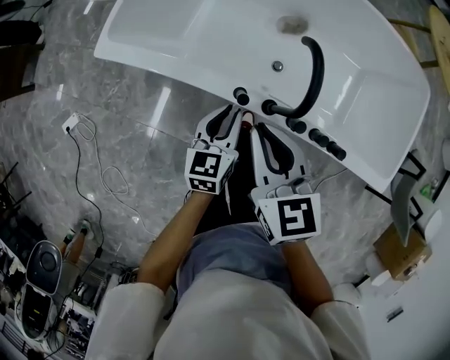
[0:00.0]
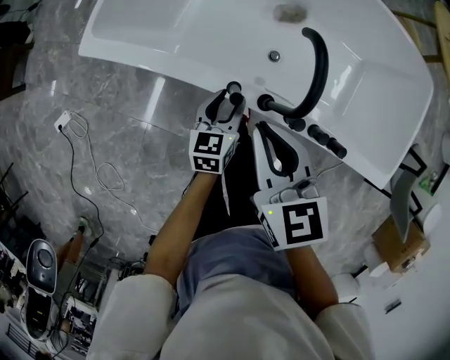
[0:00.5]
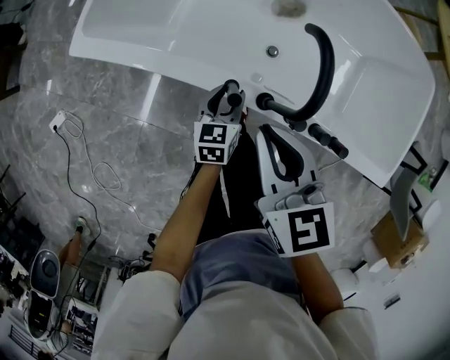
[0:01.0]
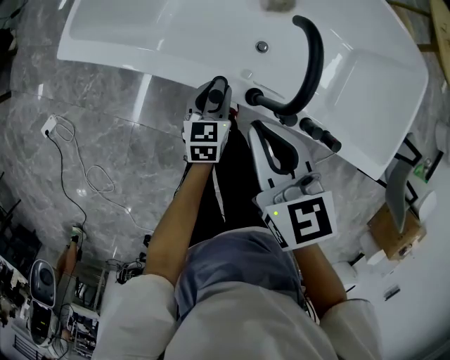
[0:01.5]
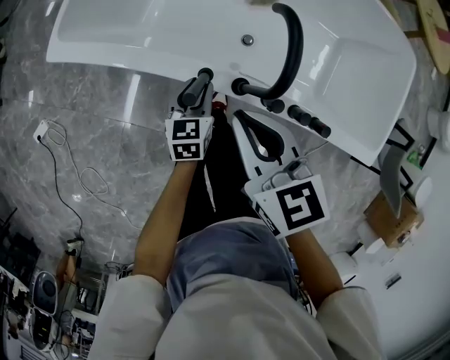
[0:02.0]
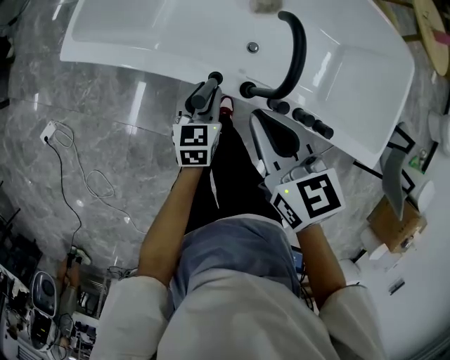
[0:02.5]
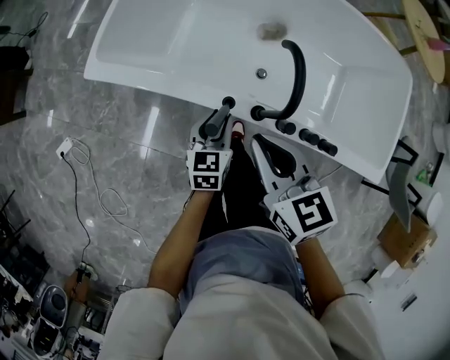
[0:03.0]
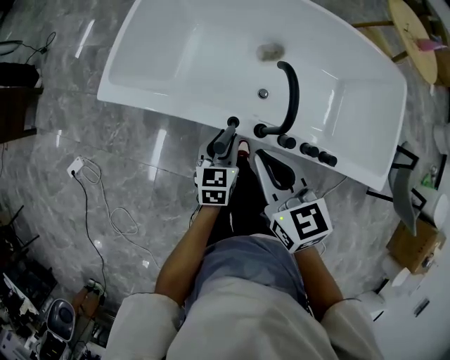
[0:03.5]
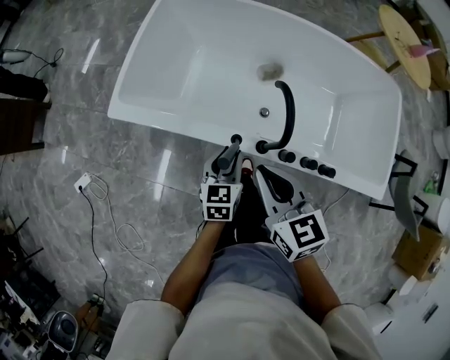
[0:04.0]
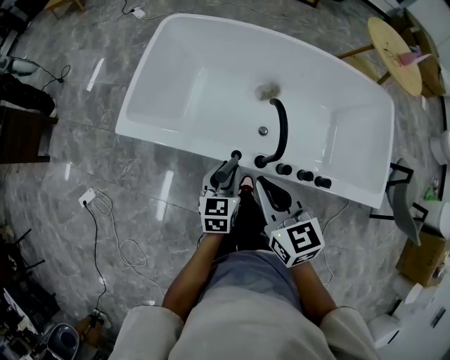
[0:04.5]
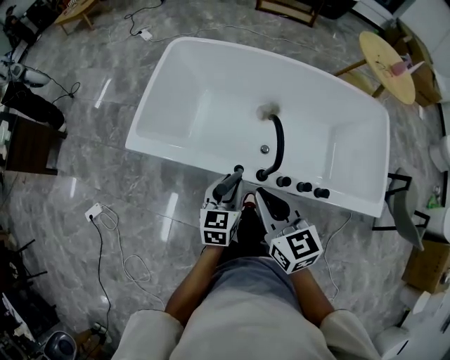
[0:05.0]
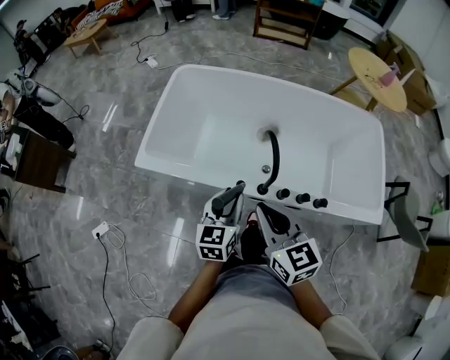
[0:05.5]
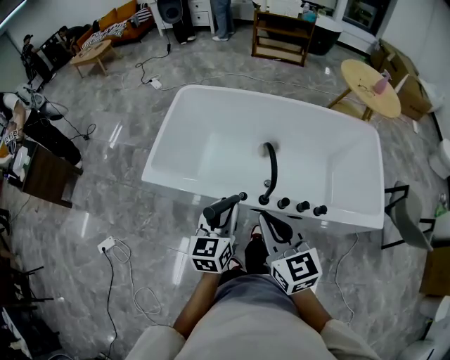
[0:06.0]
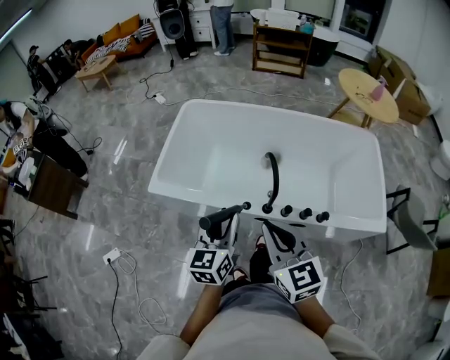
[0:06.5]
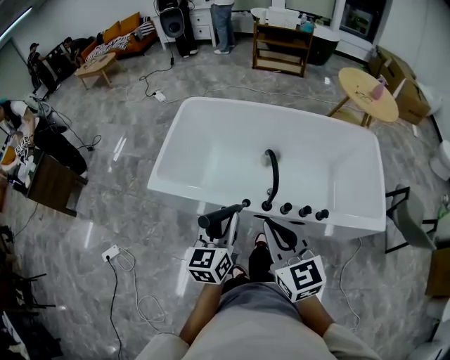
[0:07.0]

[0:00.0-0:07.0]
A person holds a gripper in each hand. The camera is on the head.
0:00.0 to 0:02.0: The left gripper goes roughly 10 cm downward.
0:02.0 to 0:03.5: The right gripper is displaced upward by some 5 cm. Meanwhile the left gripper travels upward by approximately 10 cm.
0:03.5 to 0:05.0: The left gripper moves upward, about 10 cm. Meanwhile the right gripper is displaced upward by about 5 cm.
0:05.0 to 0:07.0: Both grippers move upward and backward, about 15 cm.

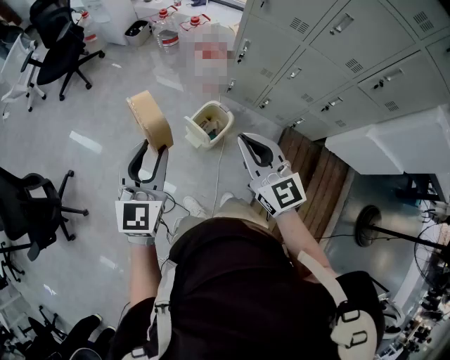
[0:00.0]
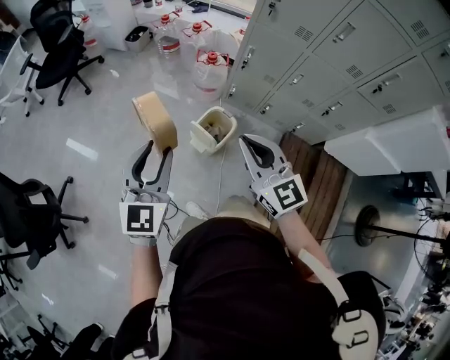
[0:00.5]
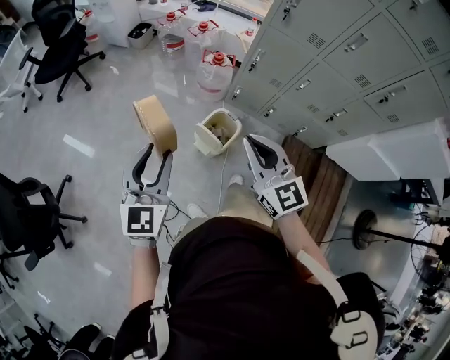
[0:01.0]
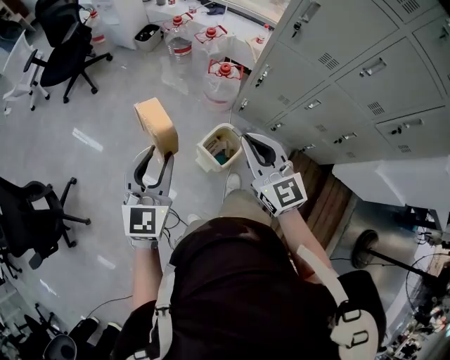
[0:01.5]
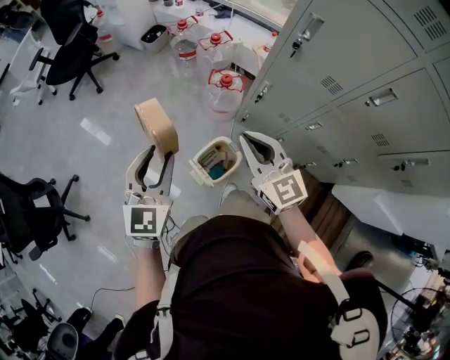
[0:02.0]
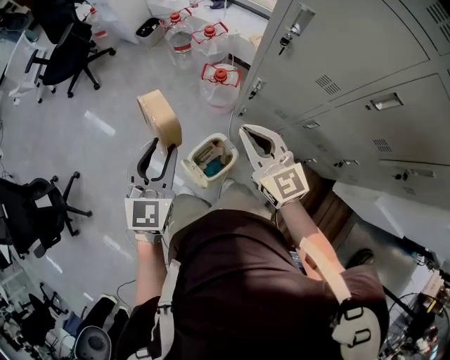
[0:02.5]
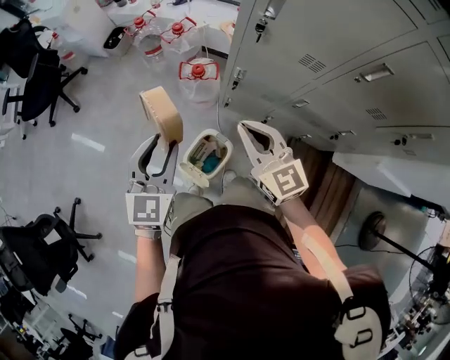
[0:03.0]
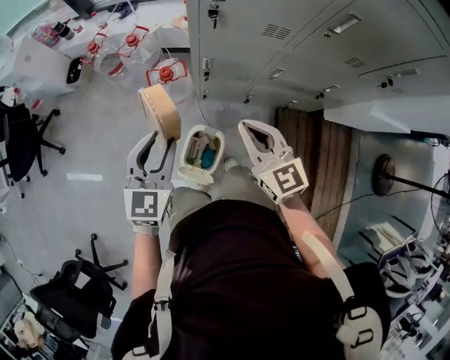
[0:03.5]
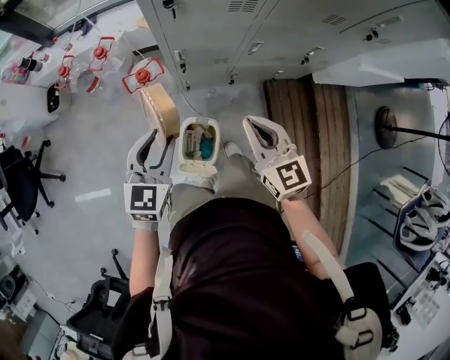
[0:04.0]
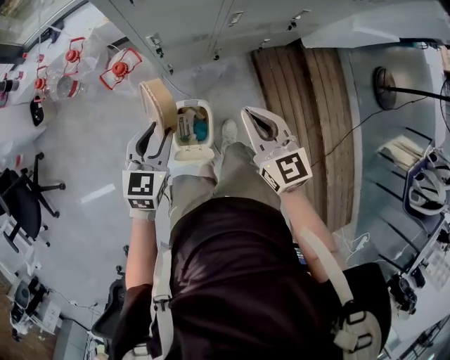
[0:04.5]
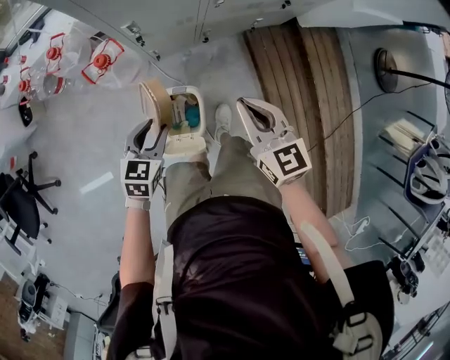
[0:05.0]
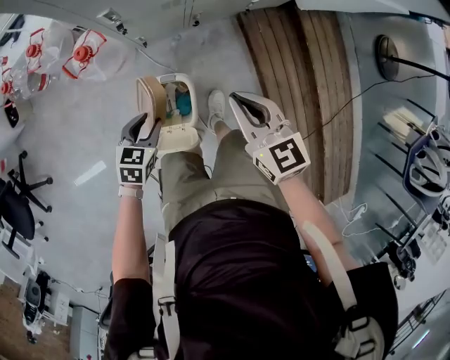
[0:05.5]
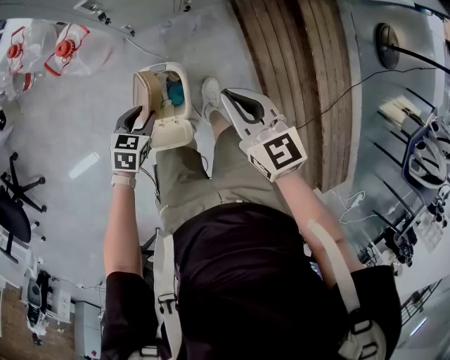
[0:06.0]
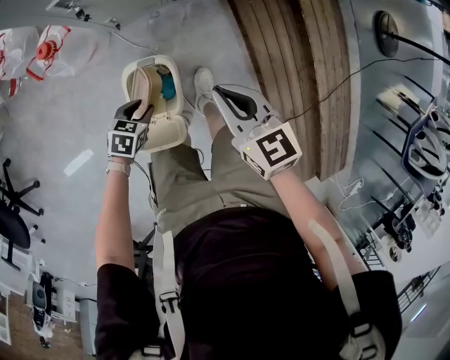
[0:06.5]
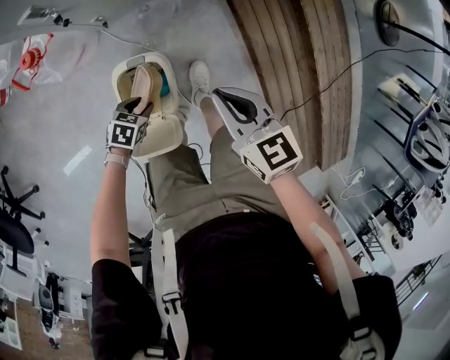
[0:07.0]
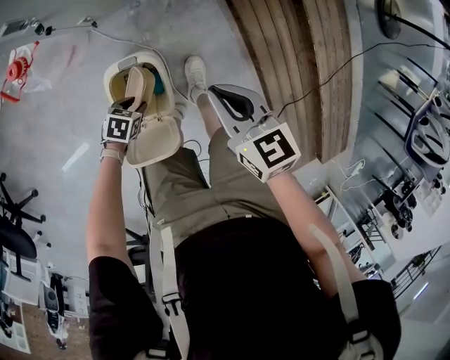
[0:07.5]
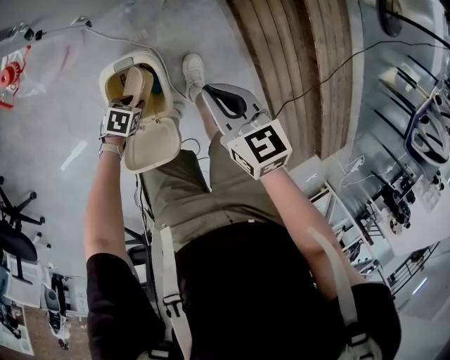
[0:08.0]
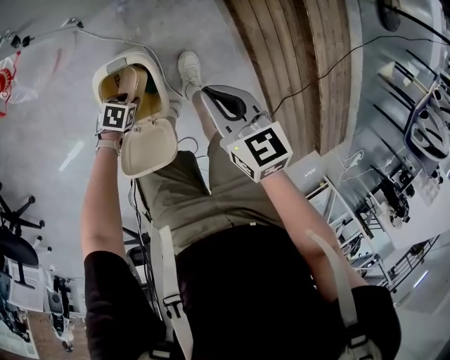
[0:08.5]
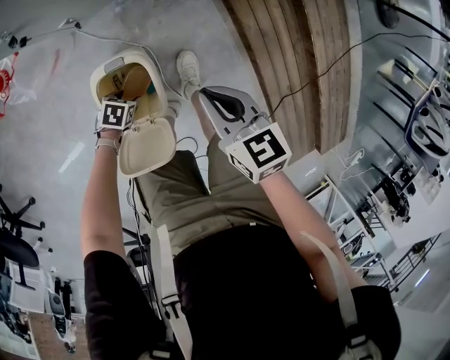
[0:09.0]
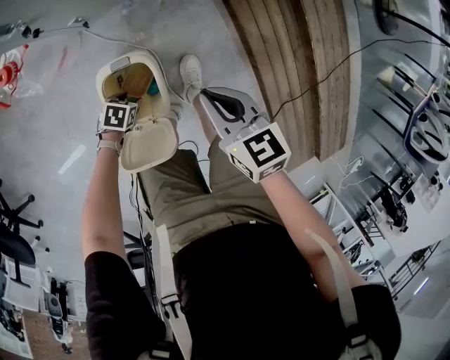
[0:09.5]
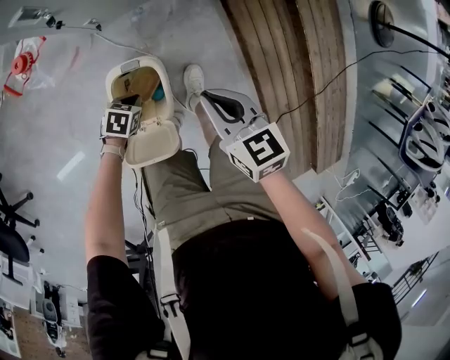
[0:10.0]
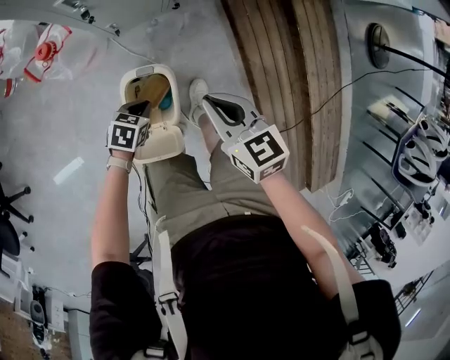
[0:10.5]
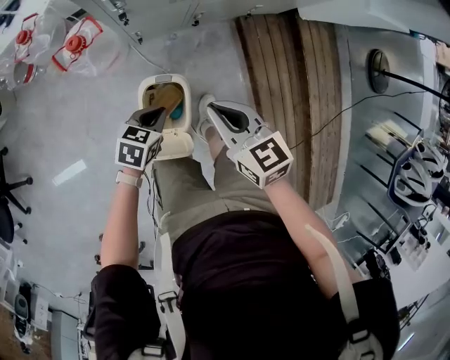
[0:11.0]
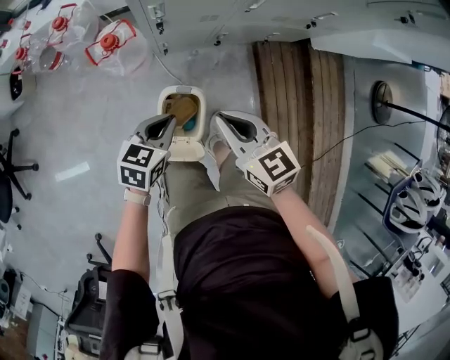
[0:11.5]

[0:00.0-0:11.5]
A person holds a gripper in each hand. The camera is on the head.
0:00.0 to 0:02.0: Both grippers move forward, about 25 cm.
0:02.0 to 0:04.0: The left gripper changes place by some 25 cm, and changes its angle by about 50 degrees. The right gripper ends up roughly 15 cm from where it was, and rotates approximately 50 degrees.
0:04.0 to 0:06.0: The left gripper heads downward, covering roughly 35 cm, and angles its fingers downward, by roughly 30 degrees, while the right gripper shifts about 20 cm downward, and swivels about 20 degrees.
0:06.0 to 0:07.5: The right gripper heads downward, covering some 10 cm, while the left gripper goes roughly 20 cm downward, and swivels some 30 degrees.
0:09.5 to 0:11.5: The right gripper is displaced upward by approximately 20 cm, and rotates some 30 degrees, while the left gripper travels upward by approximately 40 cm, changes its angle by about 50 degrees, and closes up.

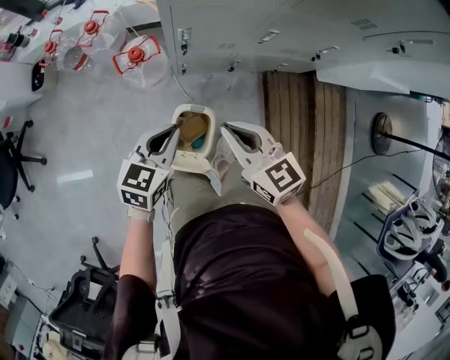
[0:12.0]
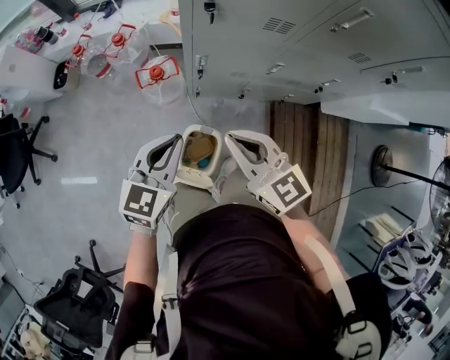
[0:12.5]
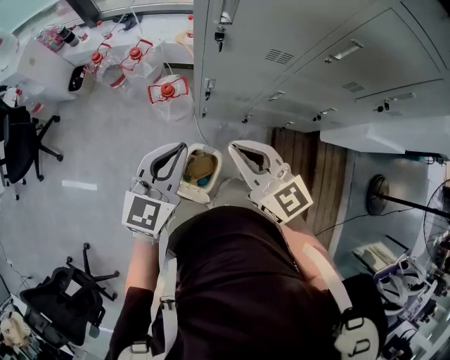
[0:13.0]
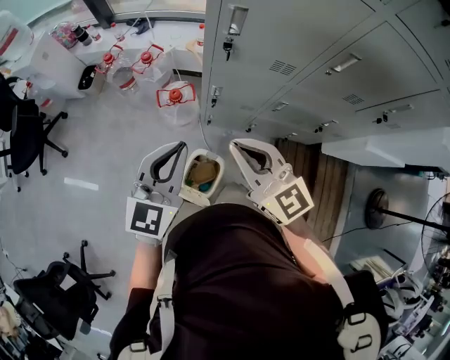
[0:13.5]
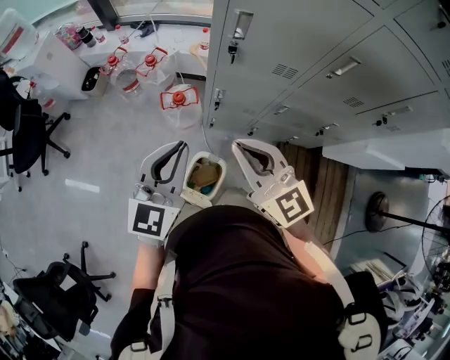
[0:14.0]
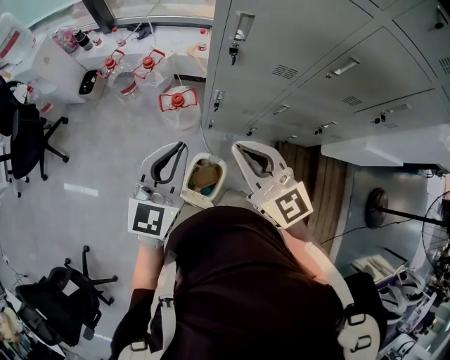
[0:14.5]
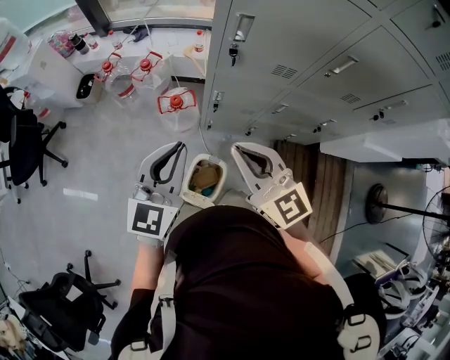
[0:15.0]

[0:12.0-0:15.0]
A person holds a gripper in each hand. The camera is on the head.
0:12.0 to 0:13.5: The two grippers go approximately 20 cm upward. The right gripper swivels approximately 30 degrees. Meanwhile the left gripper rotates approximately 30 degrees.
0:13.5 to 0:15.0: The grippers move only a little.

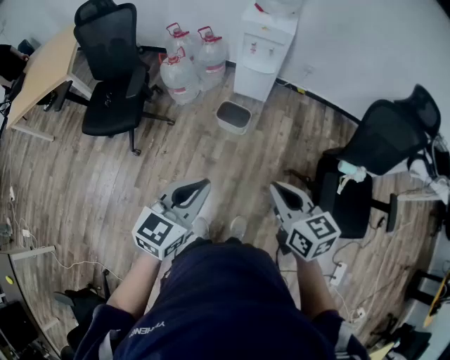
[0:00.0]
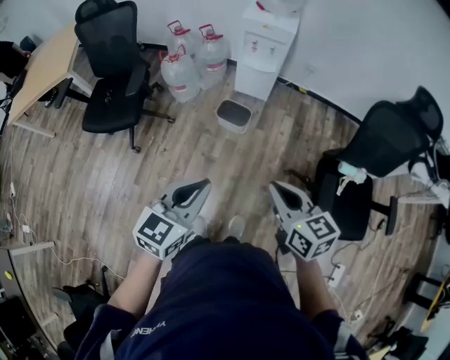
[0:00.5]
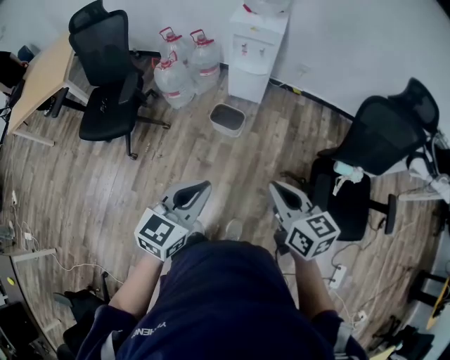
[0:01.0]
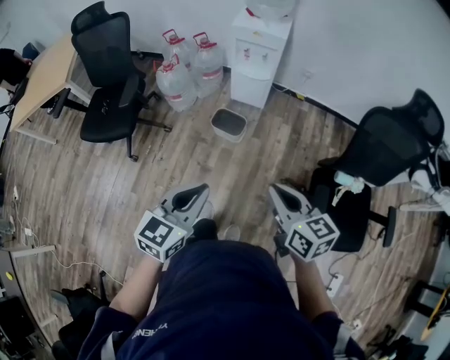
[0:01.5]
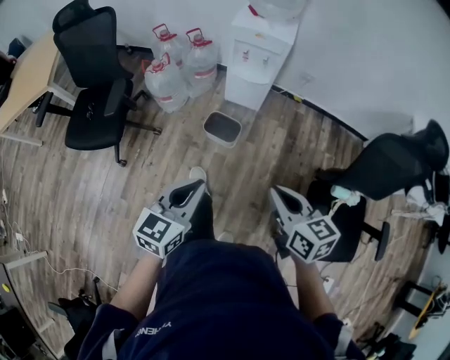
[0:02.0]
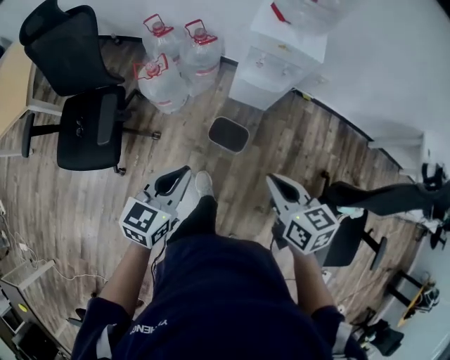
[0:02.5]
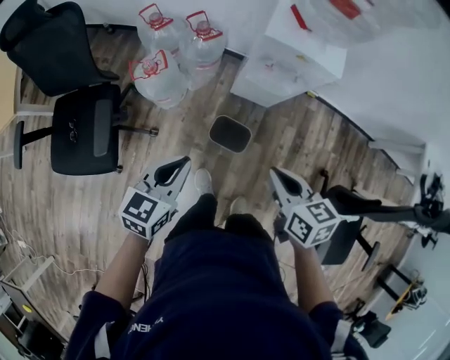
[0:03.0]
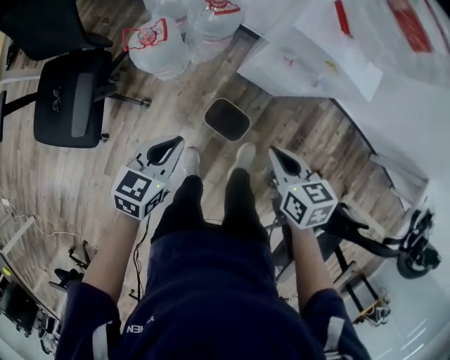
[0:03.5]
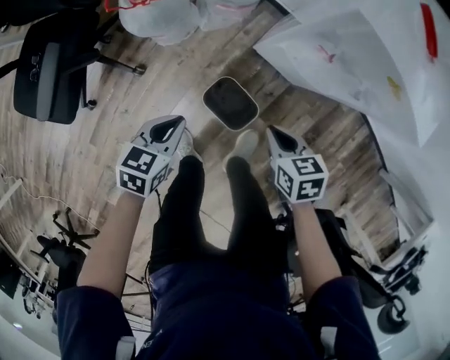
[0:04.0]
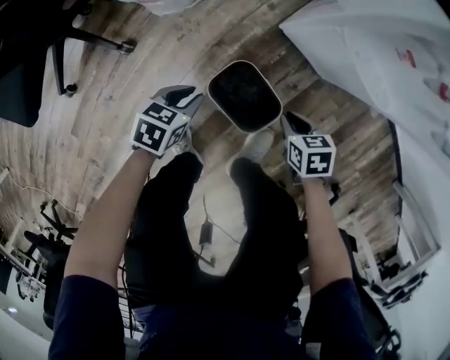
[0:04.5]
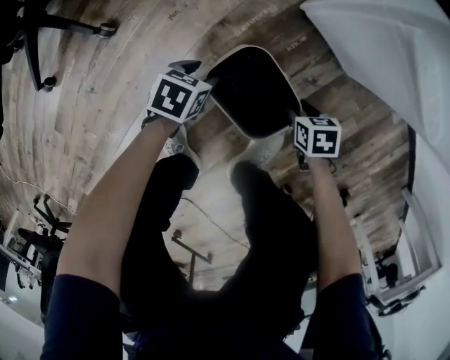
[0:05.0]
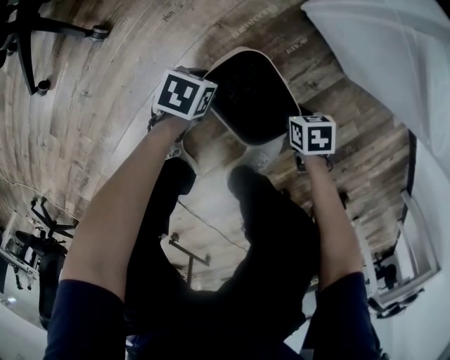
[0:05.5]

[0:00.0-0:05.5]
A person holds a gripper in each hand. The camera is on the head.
0:00.0 to 0:02.0: The right gripper is displaced forward by about 15 cm. The left gripper is displaced forward and downward by approximately 20 cm.
0:02.0 to 0:03.5: The two grippers travel together, forward, roughly 40 cm. The right gripper swivels about 20 degrees, while the left gripper is displaced downward by approximately 20 cm, and swivels roughly 20 degrees.
0:03.5 to 0:05.5: The grippers both shift downward by roughly 70 cm. The right gripper swivels approximately 40 degrees, and opens its fingers; the left gripper changes its angle by roughly 40 degrees, and opens.
